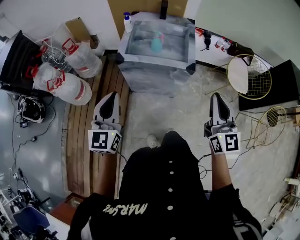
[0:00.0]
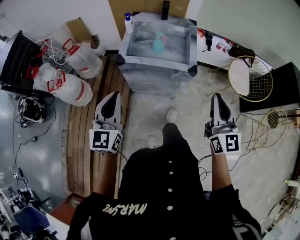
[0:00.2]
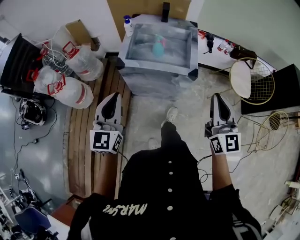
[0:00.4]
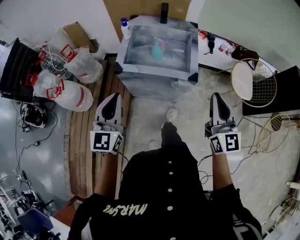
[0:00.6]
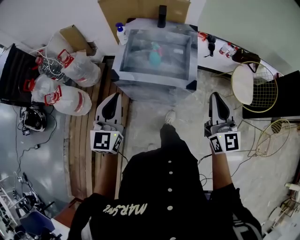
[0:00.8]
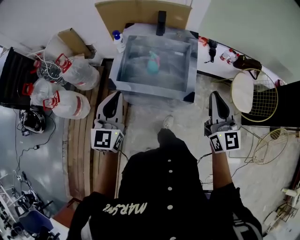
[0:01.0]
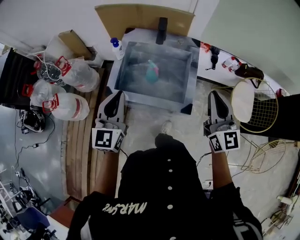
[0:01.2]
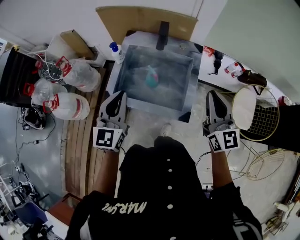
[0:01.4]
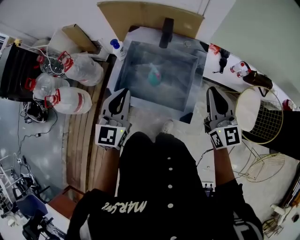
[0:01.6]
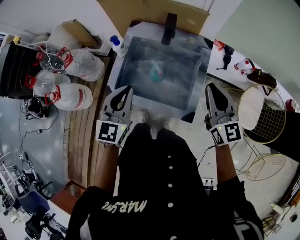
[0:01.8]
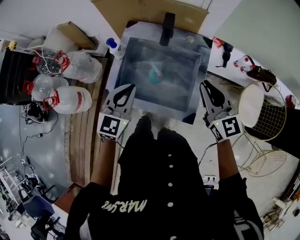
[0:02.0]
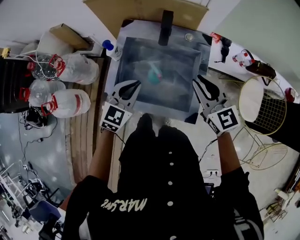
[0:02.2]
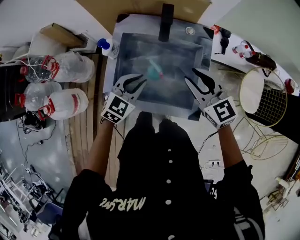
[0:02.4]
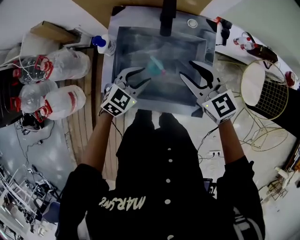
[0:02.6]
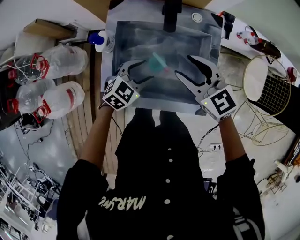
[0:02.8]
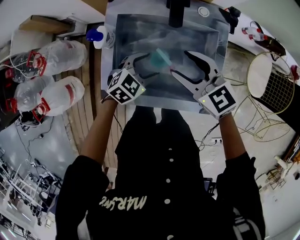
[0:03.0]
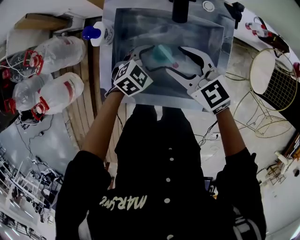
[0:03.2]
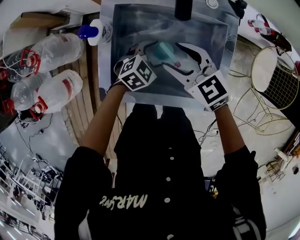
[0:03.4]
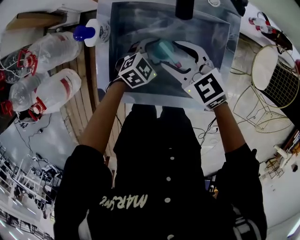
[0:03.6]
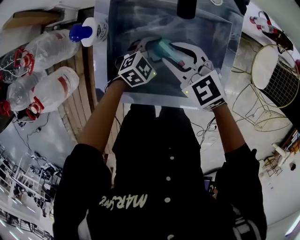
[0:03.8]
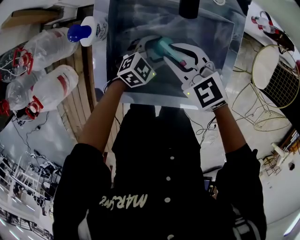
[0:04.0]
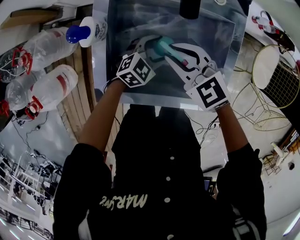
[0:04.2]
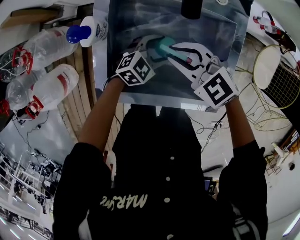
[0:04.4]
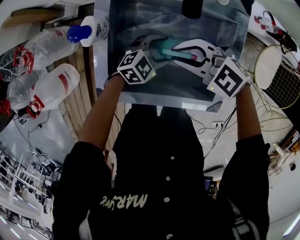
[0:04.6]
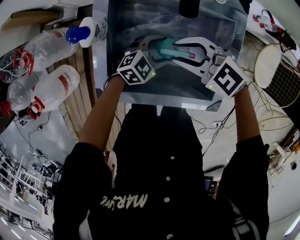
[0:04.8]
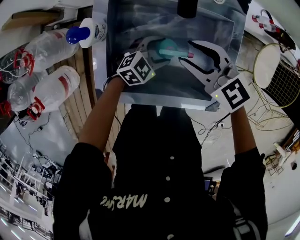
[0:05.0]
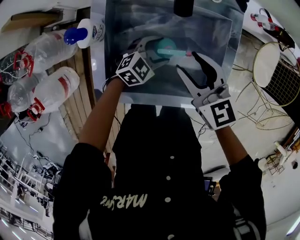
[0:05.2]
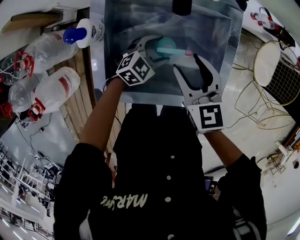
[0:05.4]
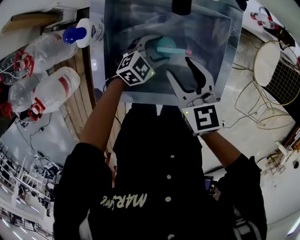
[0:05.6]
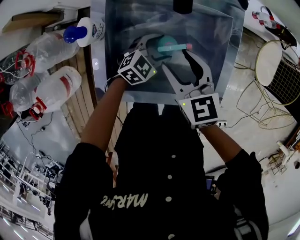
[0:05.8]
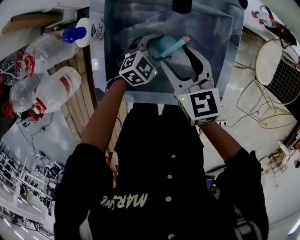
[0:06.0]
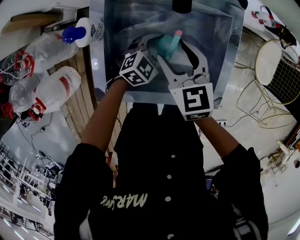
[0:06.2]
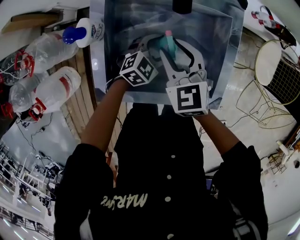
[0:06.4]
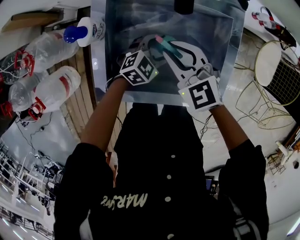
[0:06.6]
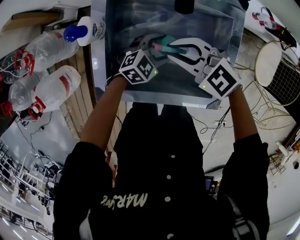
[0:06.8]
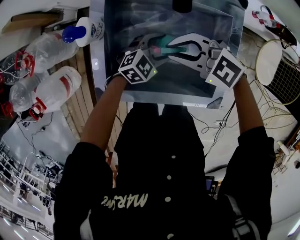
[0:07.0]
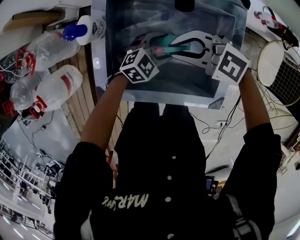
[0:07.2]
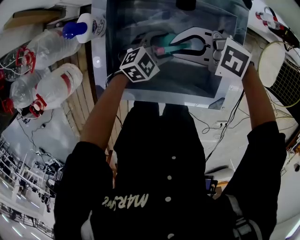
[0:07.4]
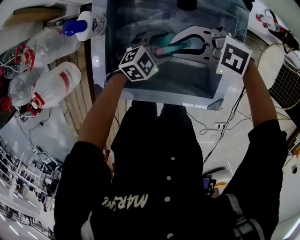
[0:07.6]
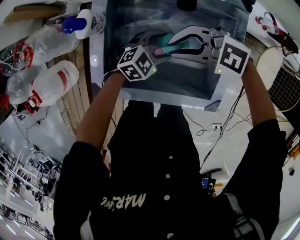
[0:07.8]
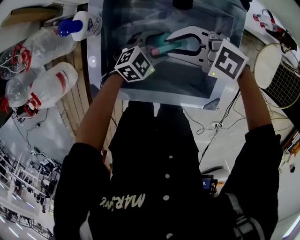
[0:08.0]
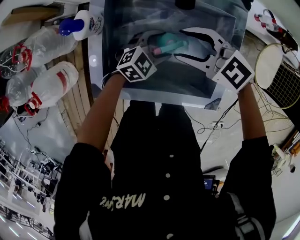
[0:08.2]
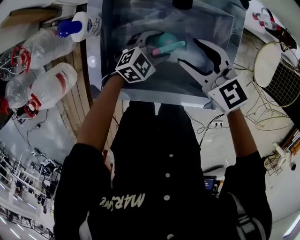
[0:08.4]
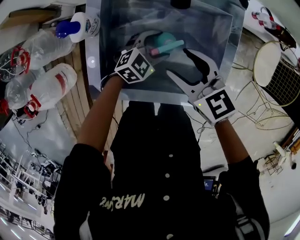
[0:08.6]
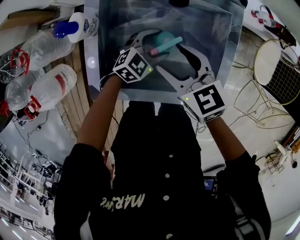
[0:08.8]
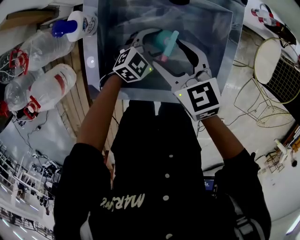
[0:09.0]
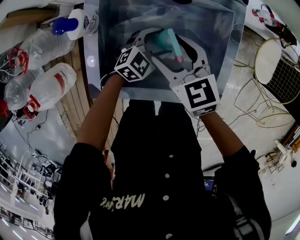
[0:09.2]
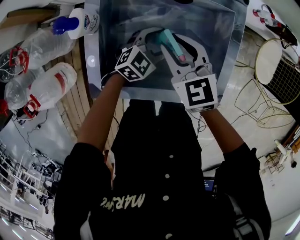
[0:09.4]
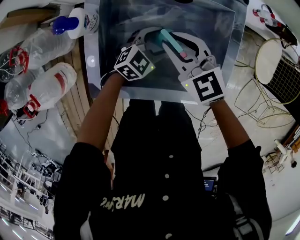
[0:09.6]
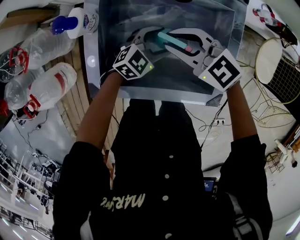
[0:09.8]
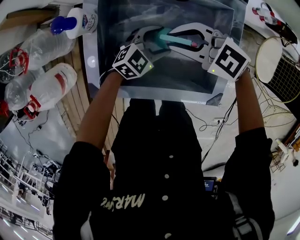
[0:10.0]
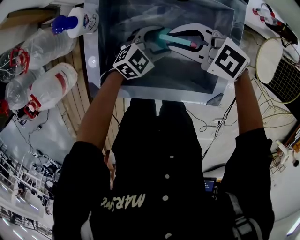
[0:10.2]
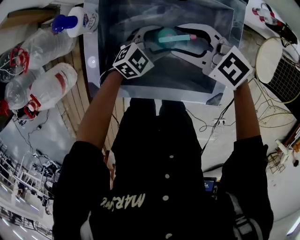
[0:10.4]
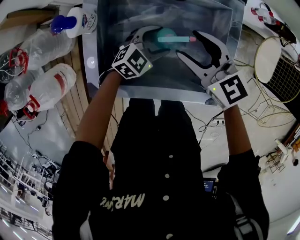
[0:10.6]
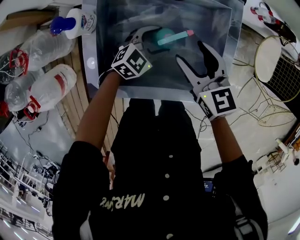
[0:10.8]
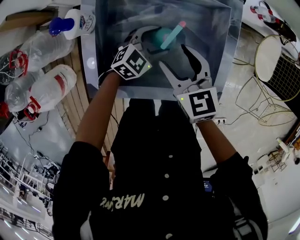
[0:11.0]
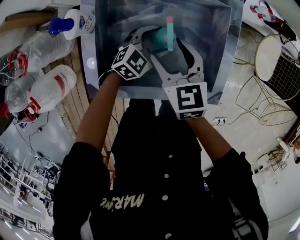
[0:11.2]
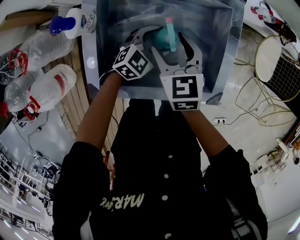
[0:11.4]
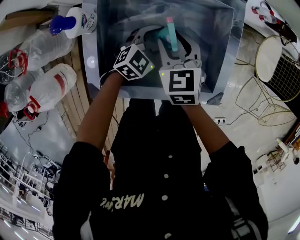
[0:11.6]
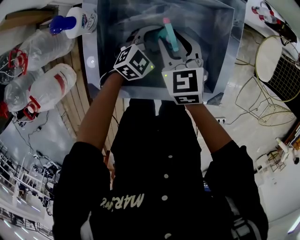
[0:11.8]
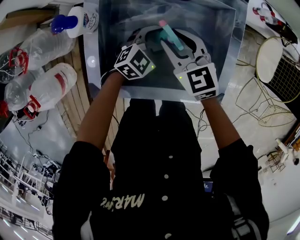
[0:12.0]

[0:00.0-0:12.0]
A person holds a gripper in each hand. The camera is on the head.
0.0 to 1.6 s: The right gripper goes roughly 40 cm forward, while the left gripper shifts approximately 35 cm forward and to the right.
1.6 to 3.0 s: The right gripper shifts about 30 cm to the left, downward and forward, rotates some 30 degrees, and opens; the left gripper goes about 30 cm downward and forward, tips its fingers downward by about 30 degrees, and opens its fingers.
3.0 to 4.4 s: The grippers both shift downward by about 10 cm. The right gripper changes its angle by some 20 degrees, and closes up.
4.4 to 6.0 s: The right gripper rotates about 40 degrees, and opens its fingers.
6.0 to 7.6 s: The right gripper changes its angle by some 70 degrees, and closes its fingers.
7.6 to 9.0 s: The right gripper changes its angle by about 60 degrees, and opens up.
9.0 to 10.4 s: The right gripper rotates about 40 degrees, and closes, then reopens.
10.4 to 12.0 s: The right gripper swivels roughly 30 degrees.

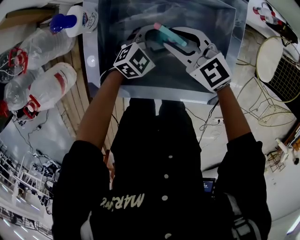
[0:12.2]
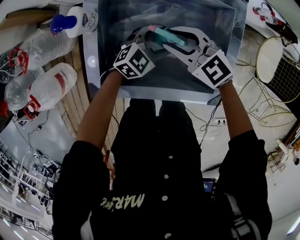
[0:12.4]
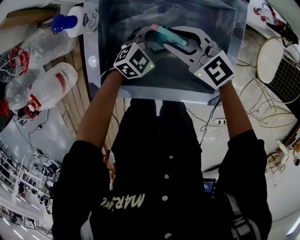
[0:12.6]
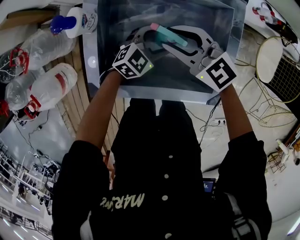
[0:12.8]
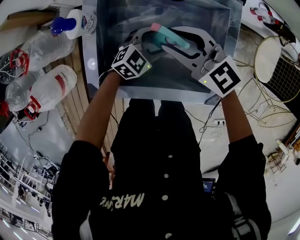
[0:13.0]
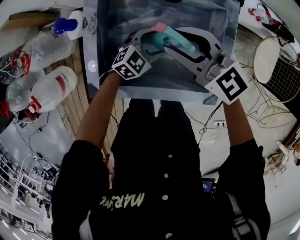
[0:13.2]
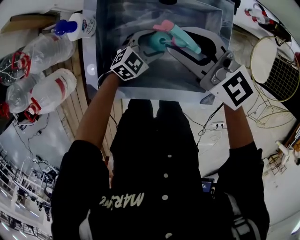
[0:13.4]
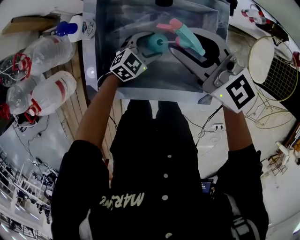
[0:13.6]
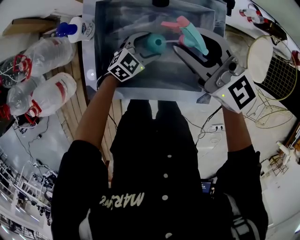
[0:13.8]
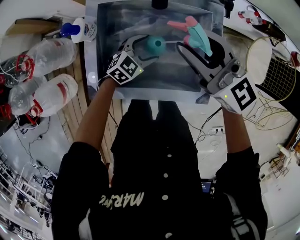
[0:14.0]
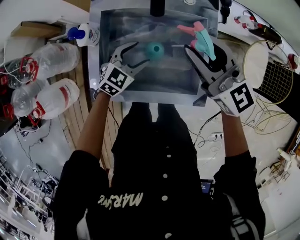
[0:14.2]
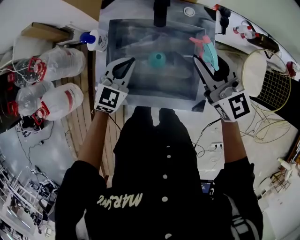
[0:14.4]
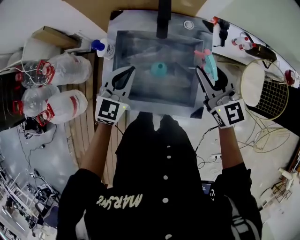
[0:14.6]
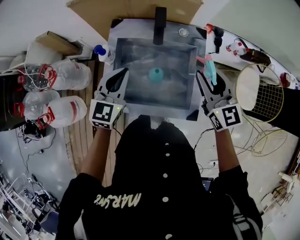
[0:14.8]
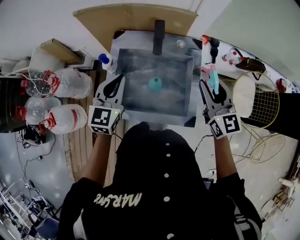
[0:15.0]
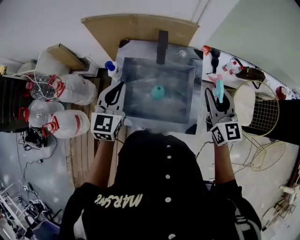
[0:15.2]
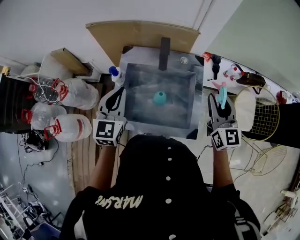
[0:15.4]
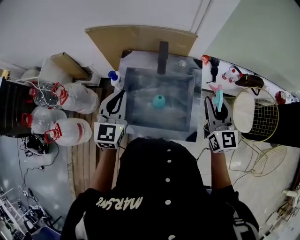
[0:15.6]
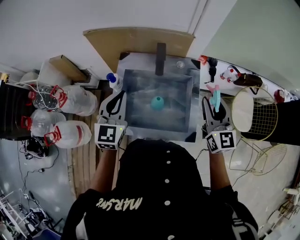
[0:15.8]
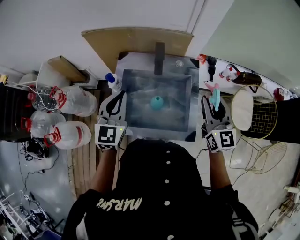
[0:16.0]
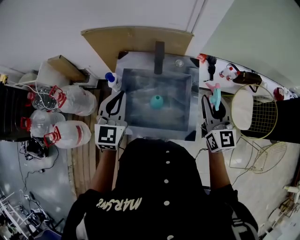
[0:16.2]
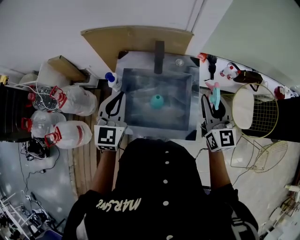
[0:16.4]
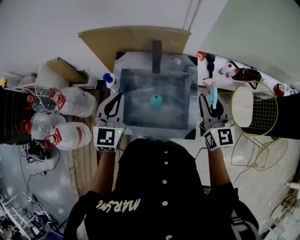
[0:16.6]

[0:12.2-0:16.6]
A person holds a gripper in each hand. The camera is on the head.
12.2 to 13.6 s: The right gripper is displaced upward by roughly 15 cm, and rotates some 20 degrees.
13.6 to 15.2 s: The left gripper goes some 35 cm upward, turns by roughly 50 degrees, and closes up. Meanwhile the right gripper travels to the right and upward by approximately 20 cm, and changes its angle by about 40 degrees.
15.2 to 16.6 s: The grippers make only small movements.

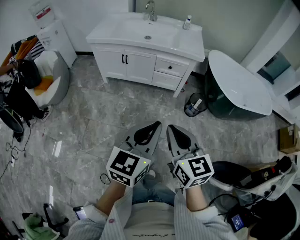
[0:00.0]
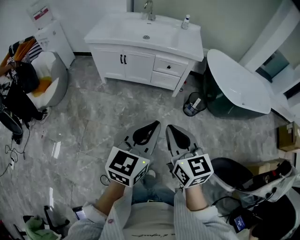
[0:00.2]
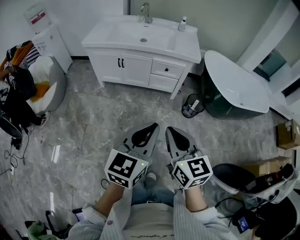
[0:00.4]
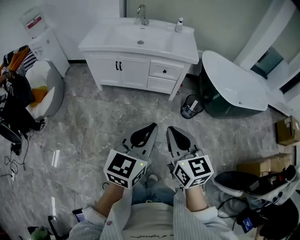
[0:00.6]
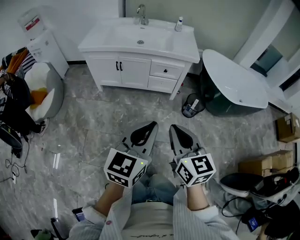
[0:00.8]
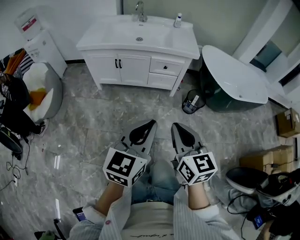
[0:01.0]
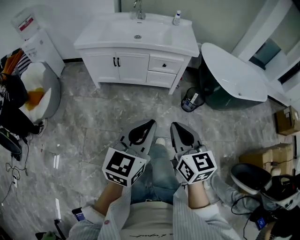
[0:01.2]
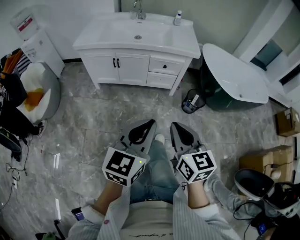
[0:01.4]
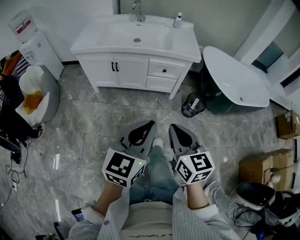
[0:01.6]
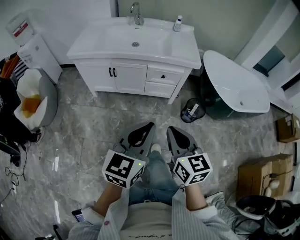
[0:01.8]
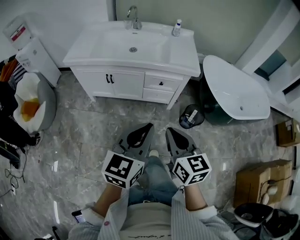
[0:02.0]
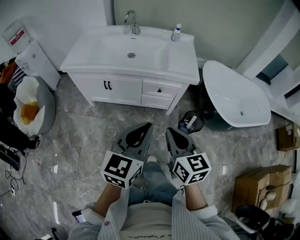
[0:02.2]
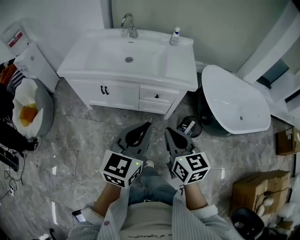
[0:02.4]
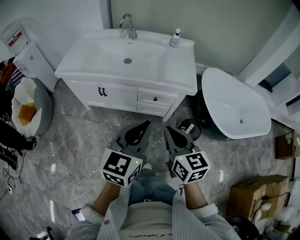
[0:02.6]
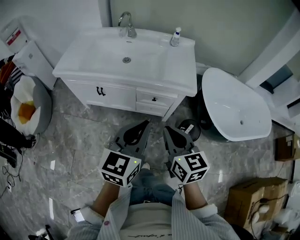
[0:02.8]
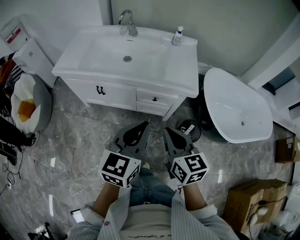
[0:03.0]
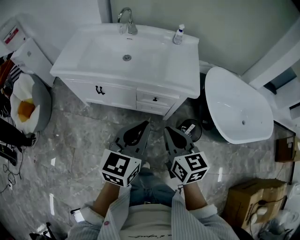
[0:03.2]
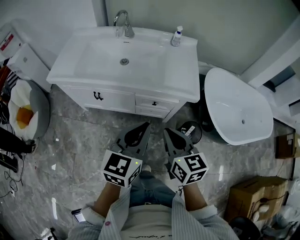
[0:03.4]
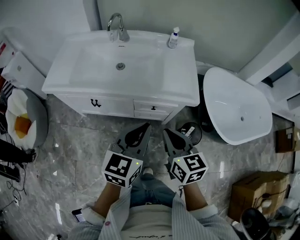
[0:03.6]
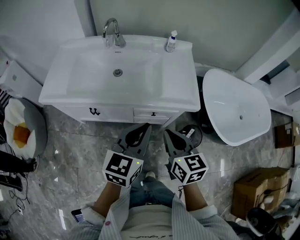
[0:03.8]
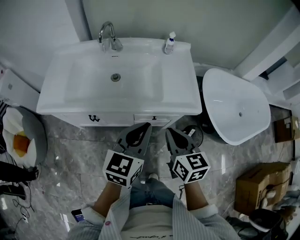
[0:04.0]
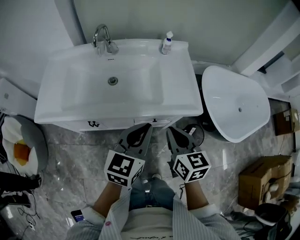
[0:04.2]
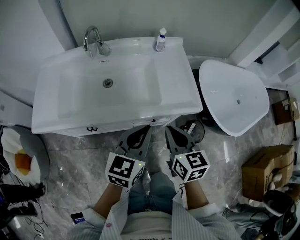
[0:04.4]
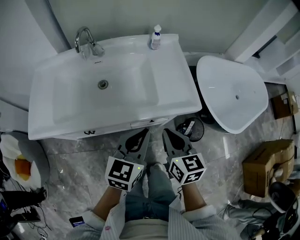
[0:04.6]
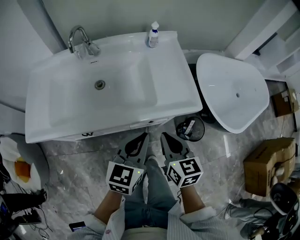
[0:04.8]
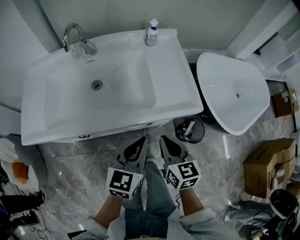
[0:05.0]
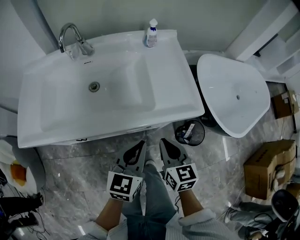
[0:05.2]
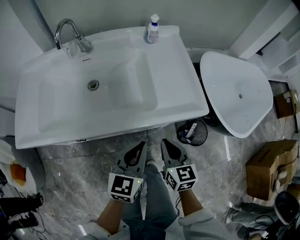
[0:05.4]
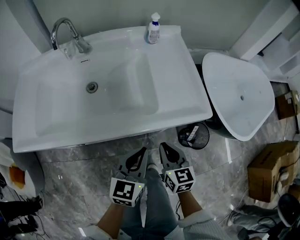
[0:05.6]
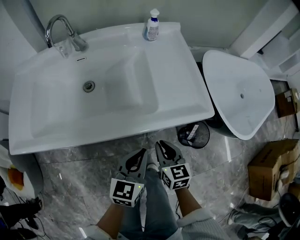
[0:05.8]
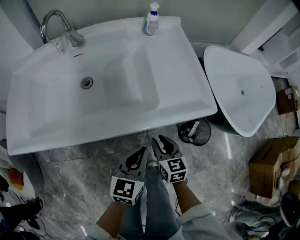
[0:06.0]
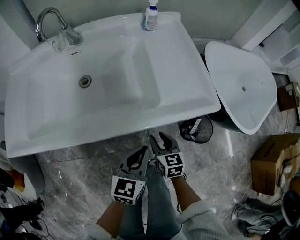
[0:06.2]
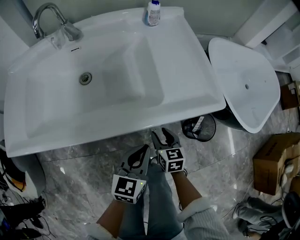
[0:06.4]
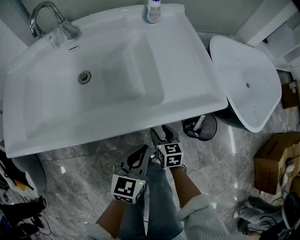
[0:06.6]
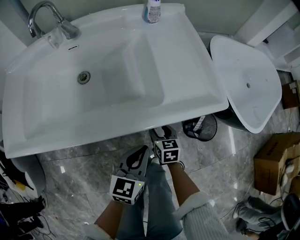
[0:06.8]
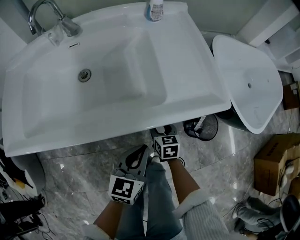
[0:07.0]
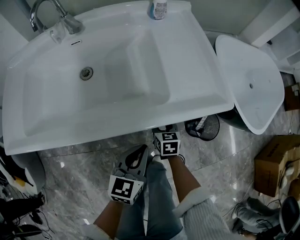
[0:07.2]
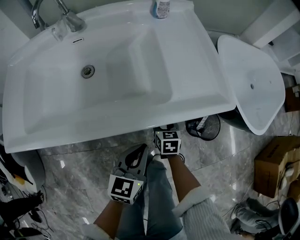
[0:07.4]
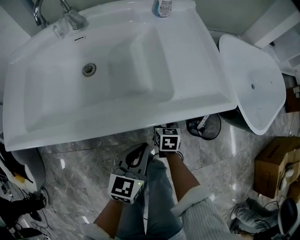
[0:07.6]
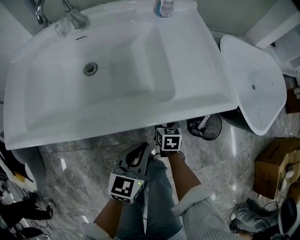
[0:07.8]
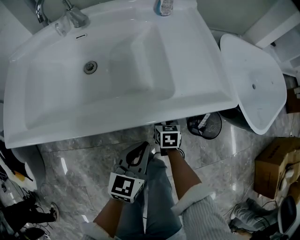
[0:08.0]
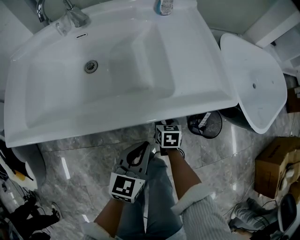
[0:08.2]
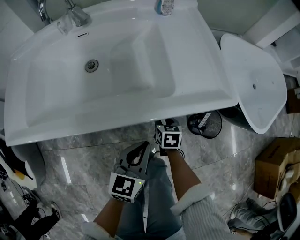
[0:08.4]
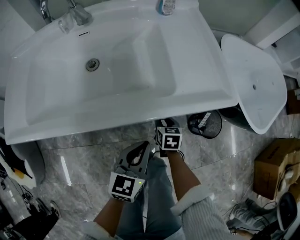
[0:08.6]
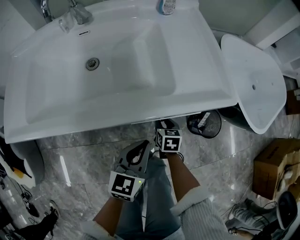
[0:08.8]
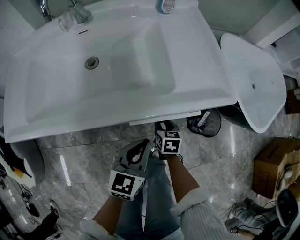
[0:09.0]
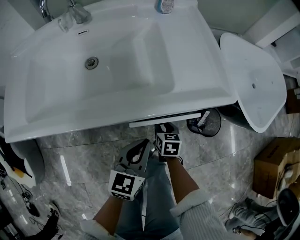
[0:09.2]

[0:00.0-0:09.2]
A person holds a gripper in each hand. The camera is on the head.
0.0 to 1.6 s: The right gripper is displaced forward by some 10 cm. Meanwhile the left gripper is displaced forward and to the left by roughly 10 cm.
1.6 to 3.0 s: The grippers both shift forward by roughly 30 cm.
3.0 to 4.6 s: The grippers both shift forward by roughly 20 cm. The left gripper turns by some 20 degrees, while the right gripper changes its angle by about 20 degrees.
4.6 to 6.2 s: The grippers both shift downward by roughly 25 cm. The right gripper opens its fingers.
6.2 to 7.6 s: The right gripper heads downward and forward, covering about 10 cm.
7.6 to 9.2 s: There are only small adjustments of the grippers.
